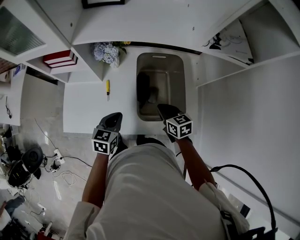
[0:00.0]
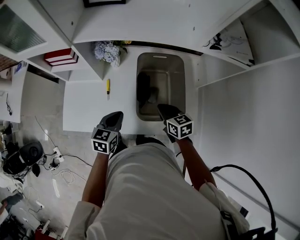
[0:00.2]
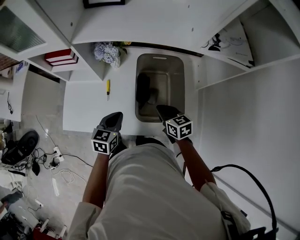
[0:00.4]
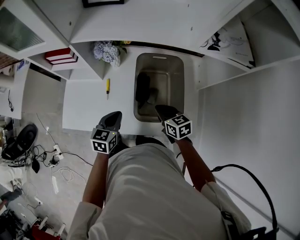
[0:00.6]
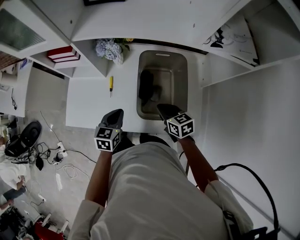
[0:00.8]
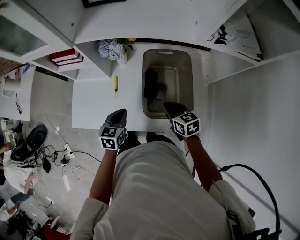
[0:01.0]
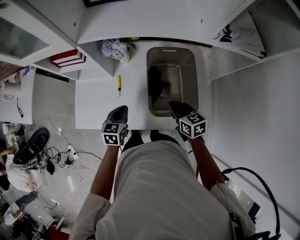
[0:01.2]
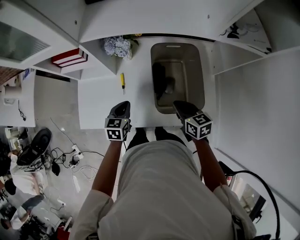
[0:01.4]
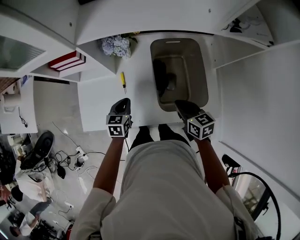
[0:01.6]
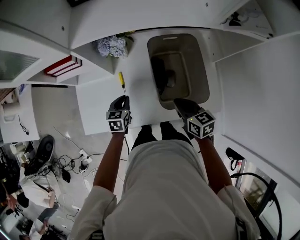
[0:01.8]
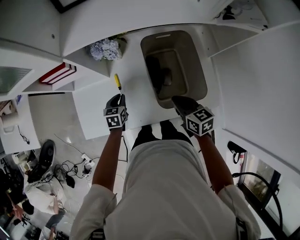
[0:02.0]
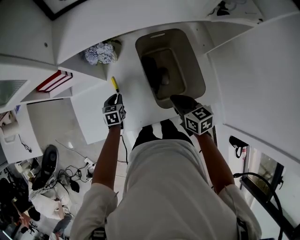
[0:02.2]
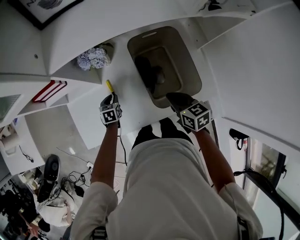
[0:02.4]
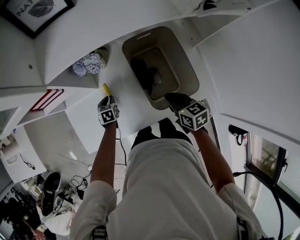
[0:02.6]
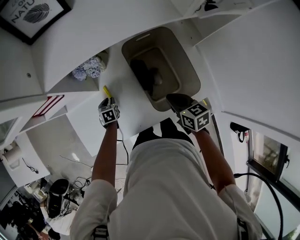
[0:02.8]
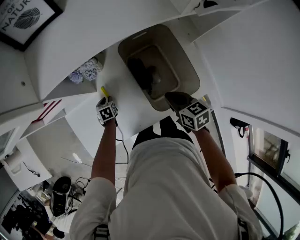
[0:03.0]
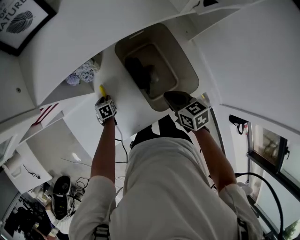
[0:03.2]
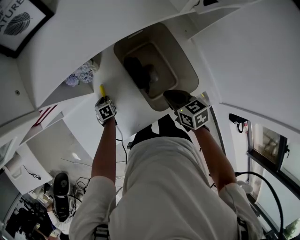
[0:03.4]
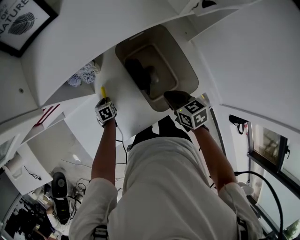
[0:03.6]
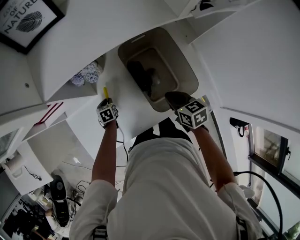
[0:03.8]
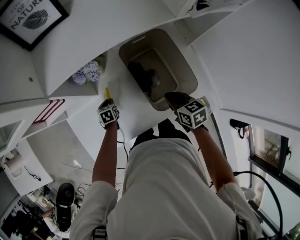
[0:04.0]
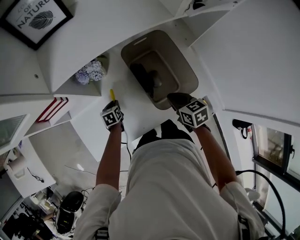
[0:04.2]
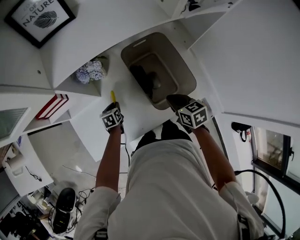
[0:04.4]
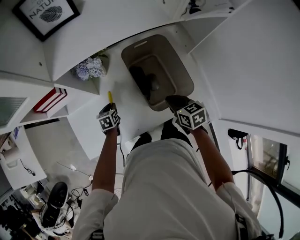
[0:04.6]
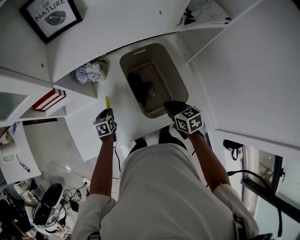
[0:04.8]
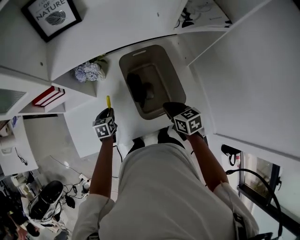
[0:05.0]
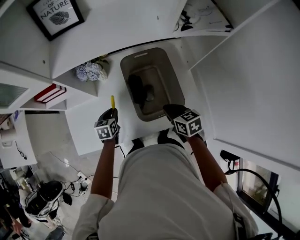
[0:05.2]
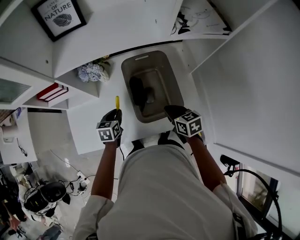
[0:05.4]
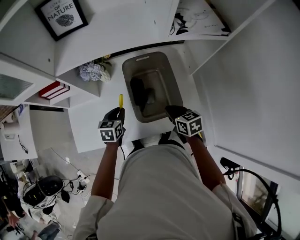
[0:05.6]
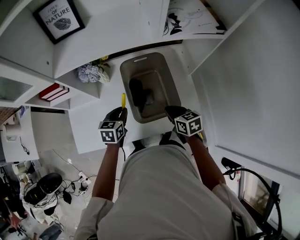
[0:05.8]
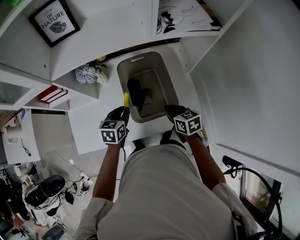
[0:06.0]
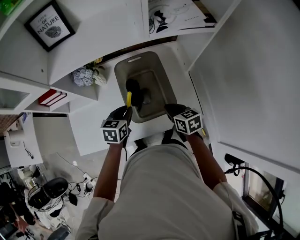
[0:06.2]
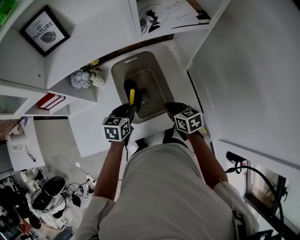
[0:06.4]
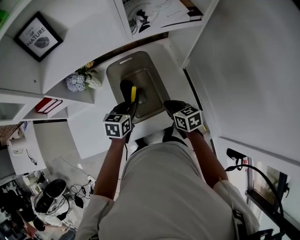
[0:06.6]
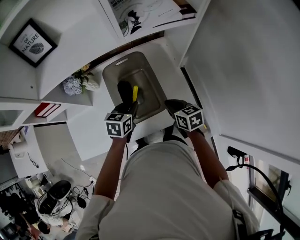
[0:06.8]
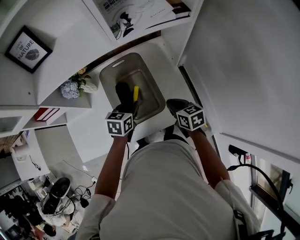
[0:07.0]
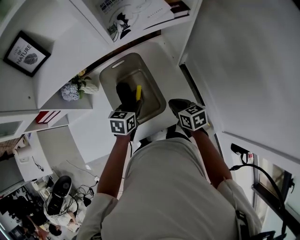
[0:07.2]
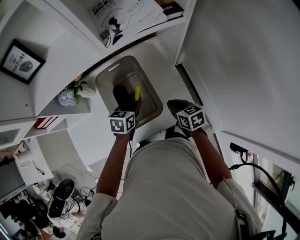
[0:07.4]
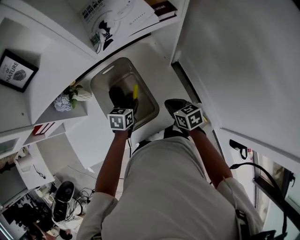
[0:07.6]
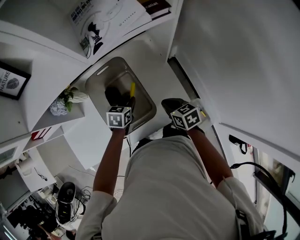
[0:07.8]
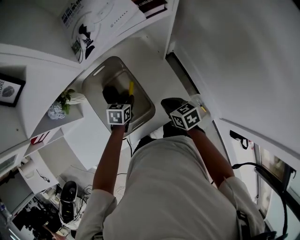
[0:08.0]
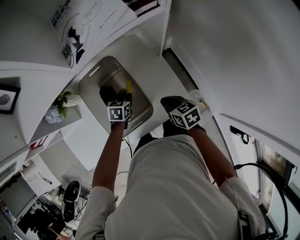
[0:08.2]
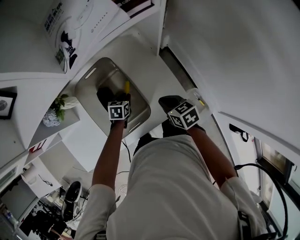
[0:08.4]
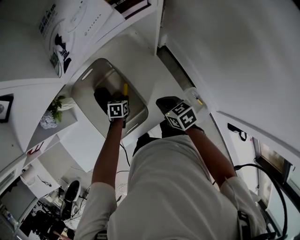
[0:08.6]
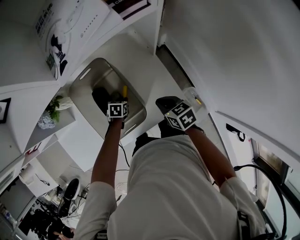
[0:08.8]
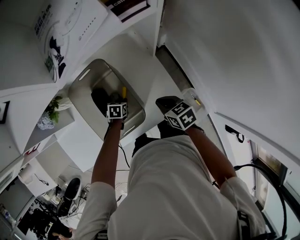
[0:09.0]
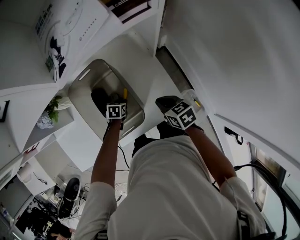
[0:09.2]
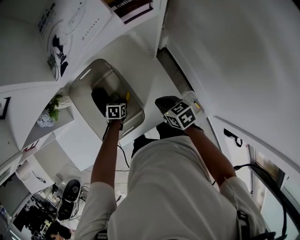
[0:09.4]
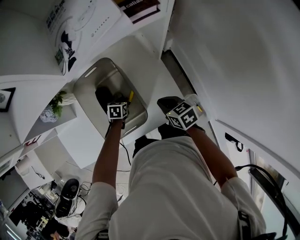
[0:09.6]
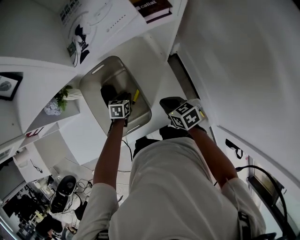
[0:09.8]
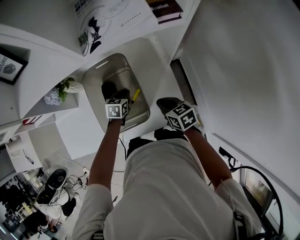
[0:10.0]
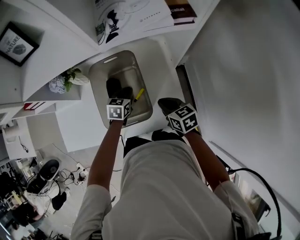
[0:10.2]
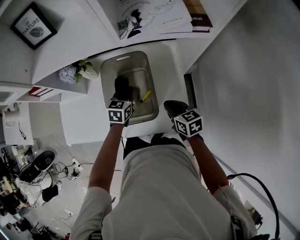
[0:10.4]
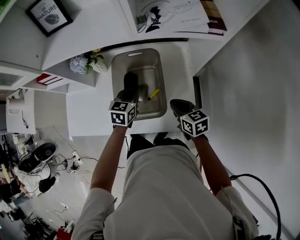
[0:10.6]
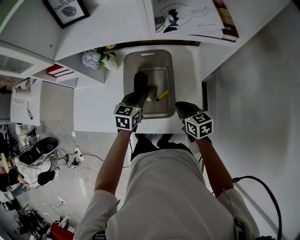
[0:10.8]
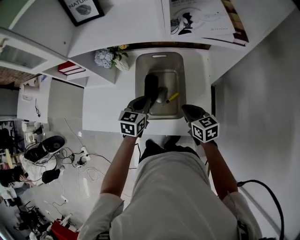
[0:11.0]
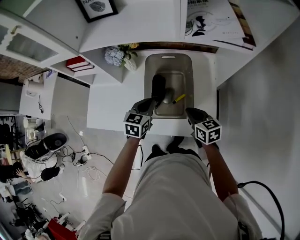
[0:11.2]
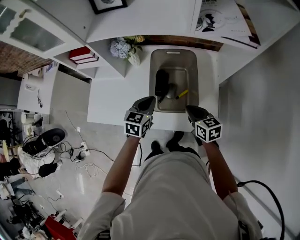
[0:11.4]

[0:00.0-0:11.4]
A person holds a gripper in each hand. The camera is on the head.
0.0 to 1.4 s: The left gripper shifts by approximately 10 cm.
1.4 to 2.8 s: The left gripper is displaced downward and forward by some 20 cm.
2.8 to 4.2 s: The grippers stay close to where they were, moving slightly.
4.2 to 5.6 s: The right gripper moves to the right, some 10 cm. Meanwhile the left gripper travels upward and to the right by approximately 20 cm.
5.6 to 7.2 s: The left gripper is displaced to the right by roughly 20 cm. The right gripper is displaced to the right by about 10 cm.
7.2 to 8.6 s: The right gripper ends up about 5 cm from where it was. The left gripper shifts some 20 cm downward, and changes its angle by about 20 degrees.
8.6 to 10.0 s: The left gripper shifts approximately 10 cm upward.
10.0 to 11.4 s: The right gripper shifts roughly 15 cm to the left and upward; the left gripper goes about 25 cm to the left, upward and backward, and rotates roughly 20 degrees.

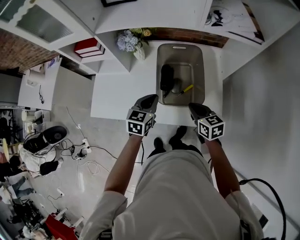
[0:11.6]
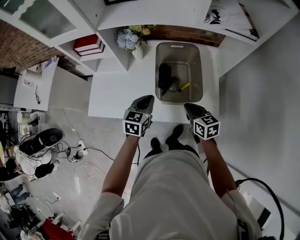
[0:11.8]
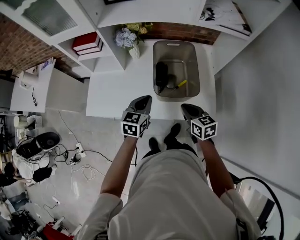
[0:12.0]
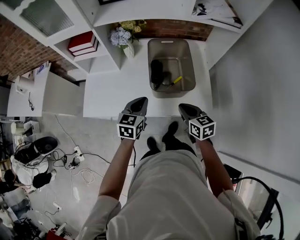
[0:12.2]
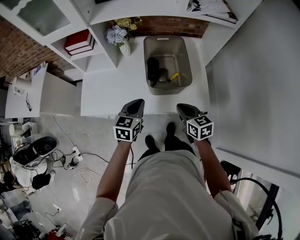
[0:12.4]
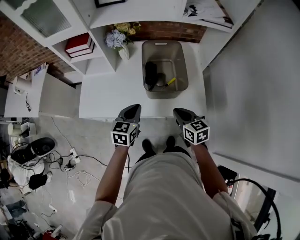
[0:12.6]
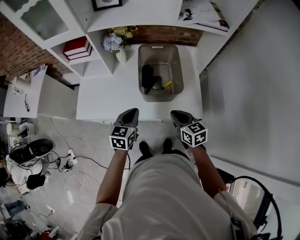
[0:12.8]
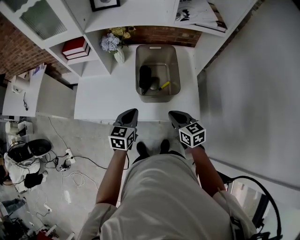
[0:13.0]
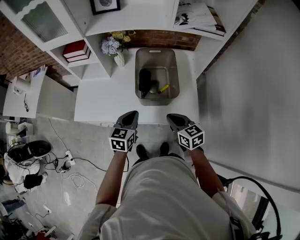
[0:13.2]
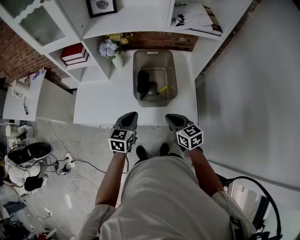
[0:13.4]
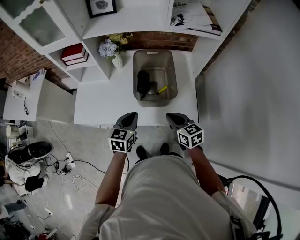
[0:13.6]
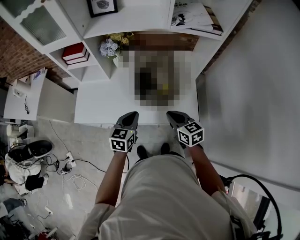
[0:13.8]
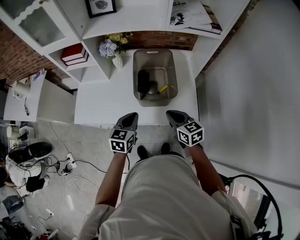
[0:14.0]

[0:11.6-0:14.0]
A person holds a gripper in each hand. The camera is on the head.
11.6 to 12.8 s: Both grippers move backward, about 10 cm.
12.8 to 14.0 s: The grippers move only a little.

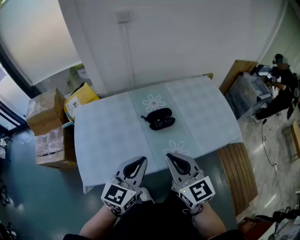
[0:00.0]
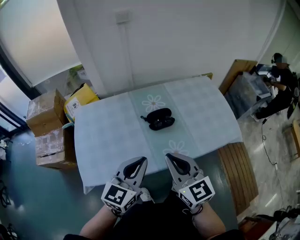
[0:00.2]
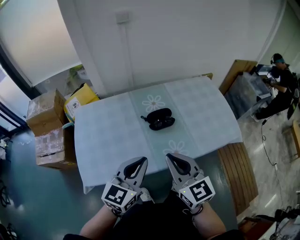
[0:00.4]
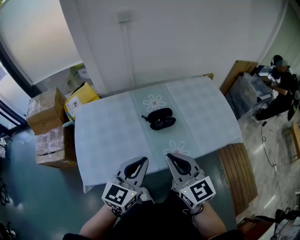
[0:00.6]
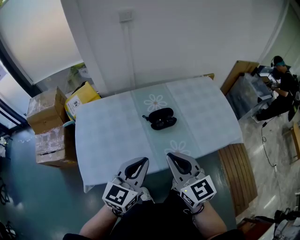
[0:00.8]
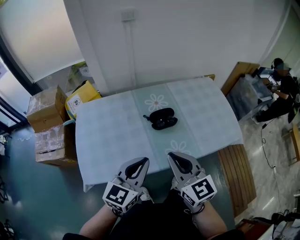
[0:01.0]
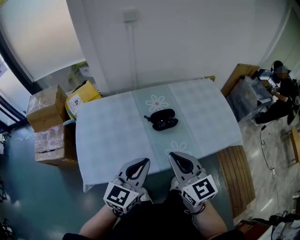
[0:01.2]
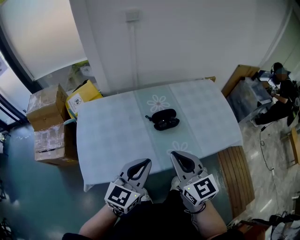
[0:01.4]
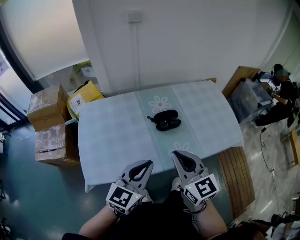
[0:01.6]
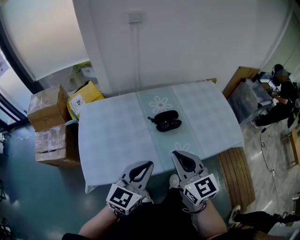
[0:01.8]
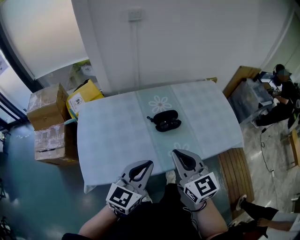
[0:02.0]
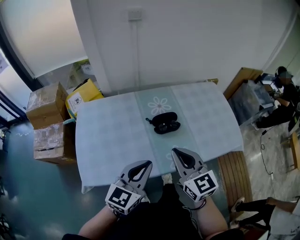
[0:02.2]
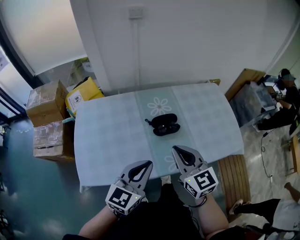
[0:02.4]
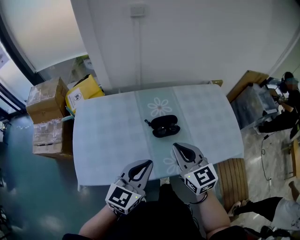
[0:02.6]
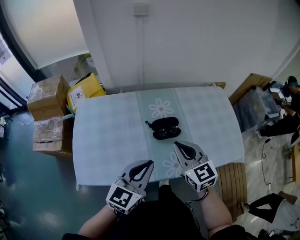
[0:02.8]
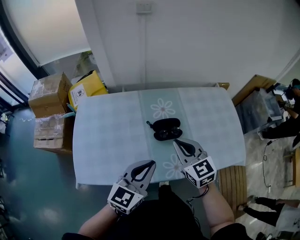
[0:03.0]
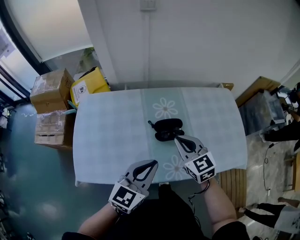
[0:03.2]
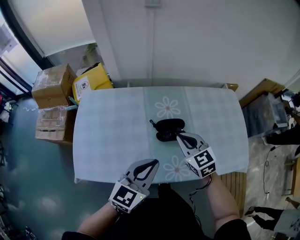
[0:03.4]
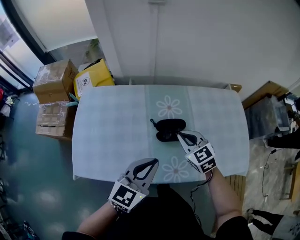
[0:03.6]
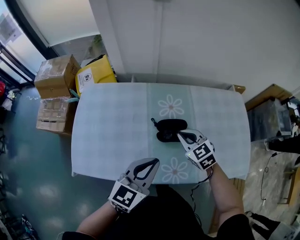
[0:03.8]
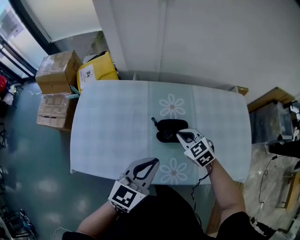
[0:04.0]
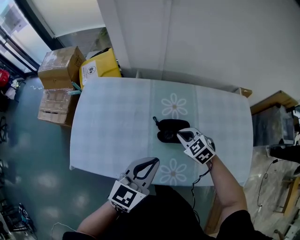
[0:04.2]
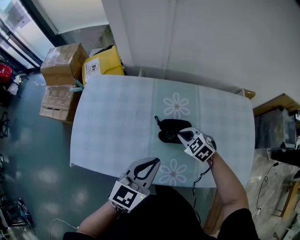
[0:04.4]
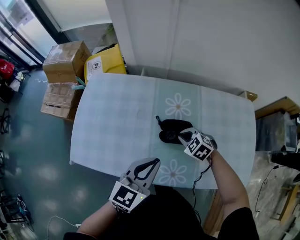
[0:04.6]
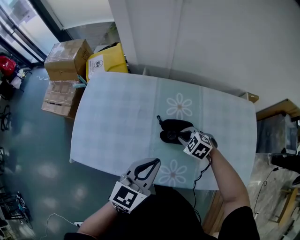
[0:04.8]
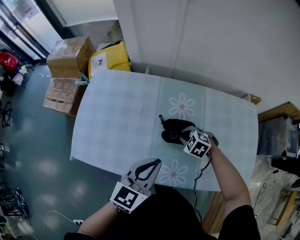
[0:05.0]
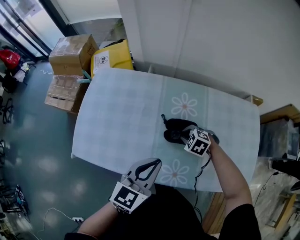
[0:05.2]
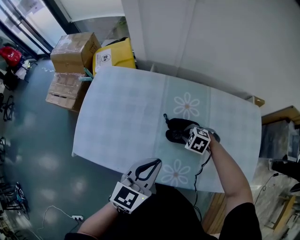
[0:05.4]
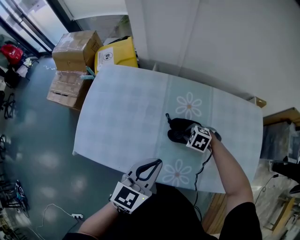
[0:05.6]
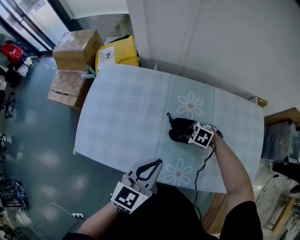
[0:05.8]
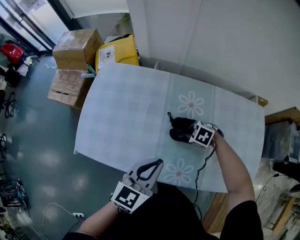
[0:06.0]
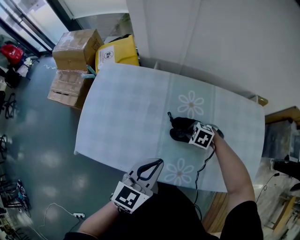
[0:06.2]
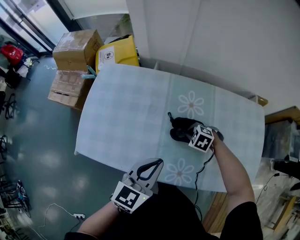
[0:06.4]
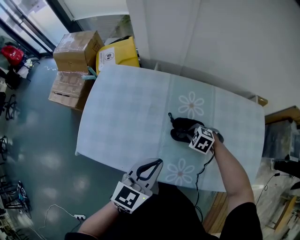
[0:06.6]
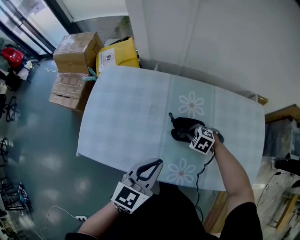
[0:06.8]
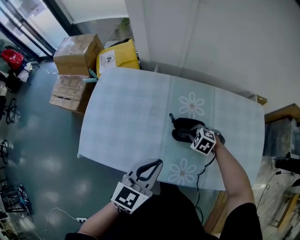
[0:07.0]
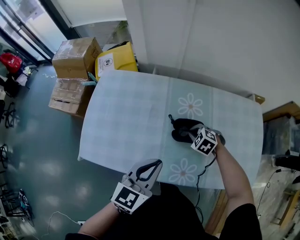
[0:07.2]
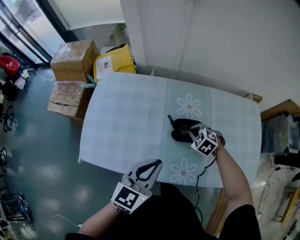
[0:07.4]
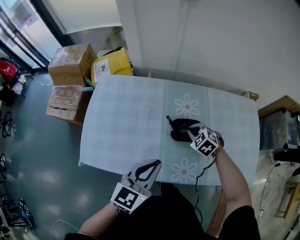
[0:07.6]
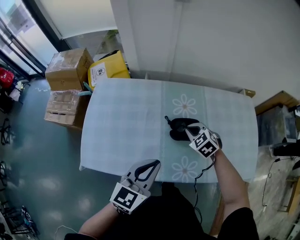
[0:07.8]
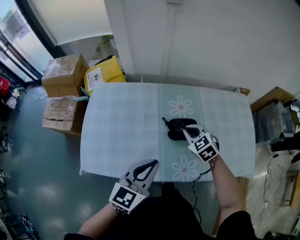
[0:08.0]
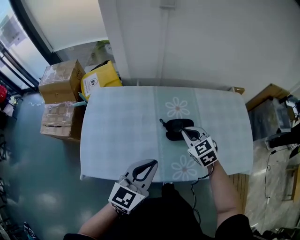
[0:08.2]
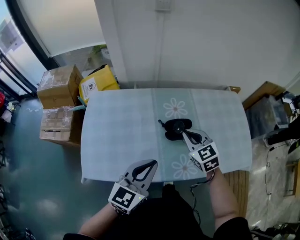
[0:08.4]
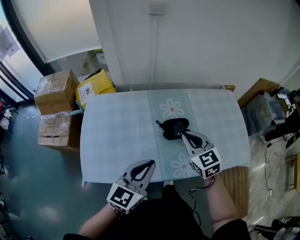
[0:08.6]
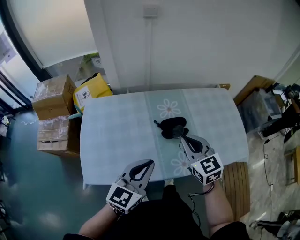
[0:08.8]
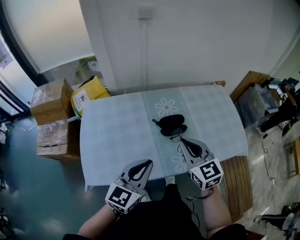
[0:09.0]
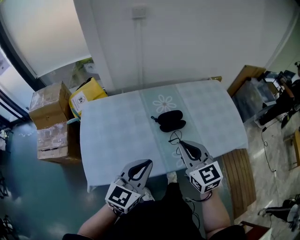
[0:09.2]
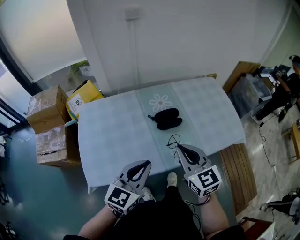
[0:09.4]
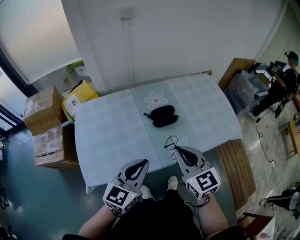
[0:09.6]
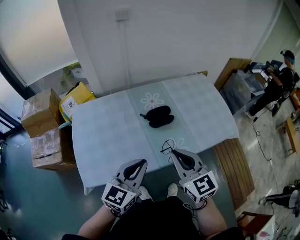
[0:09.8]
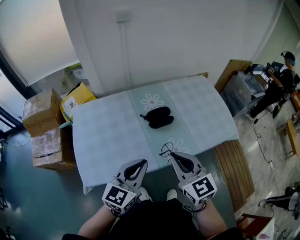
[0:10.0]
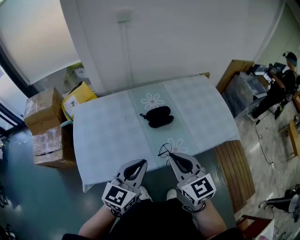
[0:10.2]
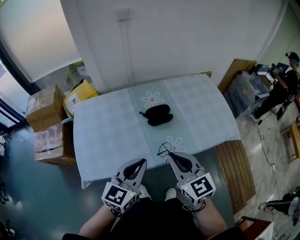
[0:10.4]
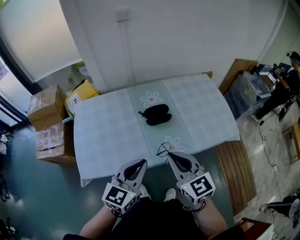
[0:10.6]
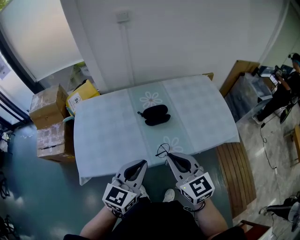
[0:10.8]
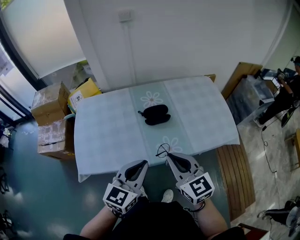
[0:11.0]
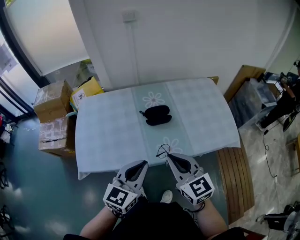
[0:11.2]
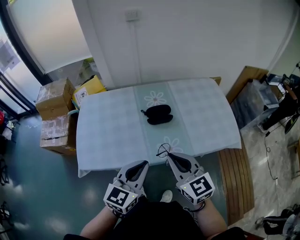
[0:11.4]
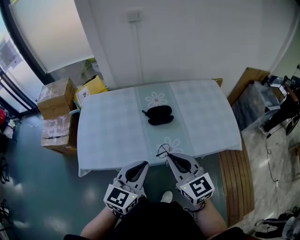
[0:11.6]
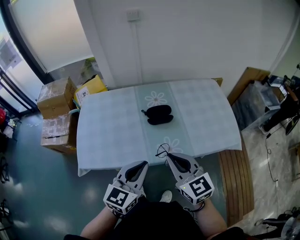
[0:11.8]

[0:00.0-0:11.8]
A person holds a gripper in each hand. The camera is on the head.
0.0 to 1.4 s: Both grippers stay about where they are.
1.4 to 3.0 s: The left gripper shifts some 10 cm forward; the right gripper heads forward and downward, covering approximately 15 cm.
3.0 to 4.4 s: The right gripper moves downward and forward, roughly 20 cm, and tilts its fingers approximately 30 degrees downward; the left gripper shifts approximately 5 cm forward.
4.4 to 6.0 s: The right gripper moves downward, some 5 cm, and turns by some 30 degrees.
6.0 to 7.4 s: The right gripper turns by about 20 degrees.
7.4 to 8.8 s: The left gripper changes place by roughly 10 cm; the right gripper shifts some 25 cm upward and backward, and tips its fingers upward by about 40 degrees.
8.8 to 10.4 s: The left gripper heads backward, covering some 5 cm. Meanwhile the right gripper moves backward, roughly 15 cm.
10.4 to 11.8 s: The left gripper heads to the right, covering approximately 5 cm.
